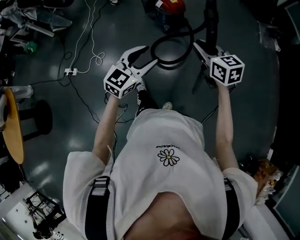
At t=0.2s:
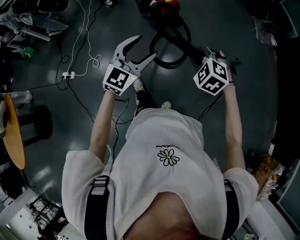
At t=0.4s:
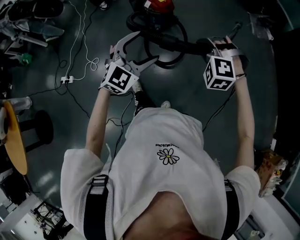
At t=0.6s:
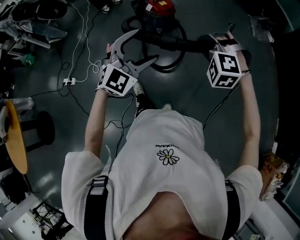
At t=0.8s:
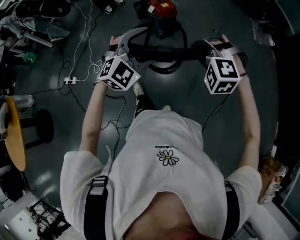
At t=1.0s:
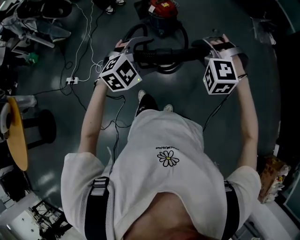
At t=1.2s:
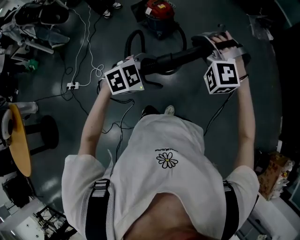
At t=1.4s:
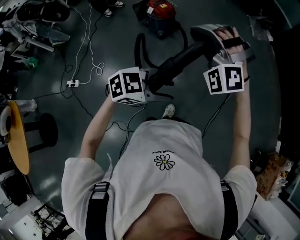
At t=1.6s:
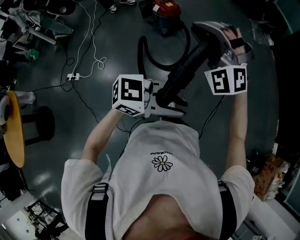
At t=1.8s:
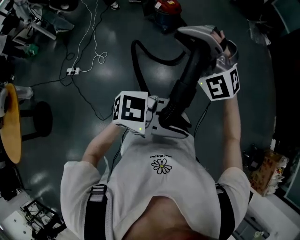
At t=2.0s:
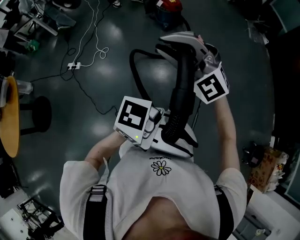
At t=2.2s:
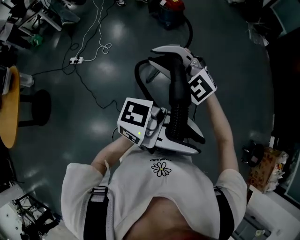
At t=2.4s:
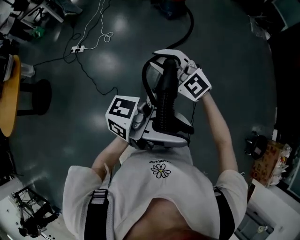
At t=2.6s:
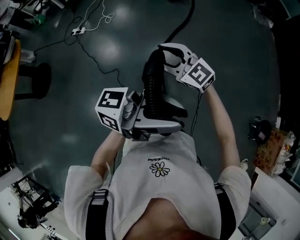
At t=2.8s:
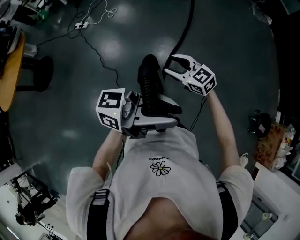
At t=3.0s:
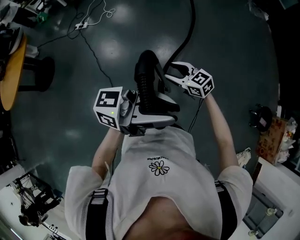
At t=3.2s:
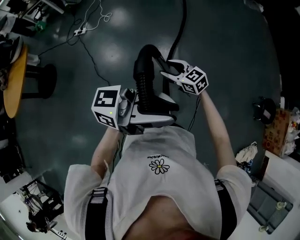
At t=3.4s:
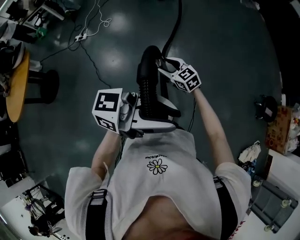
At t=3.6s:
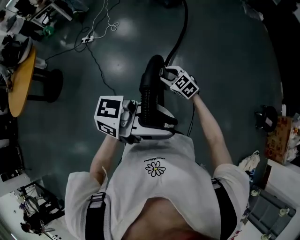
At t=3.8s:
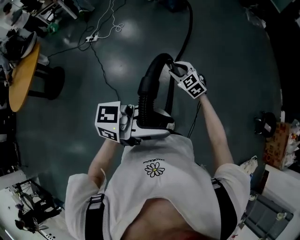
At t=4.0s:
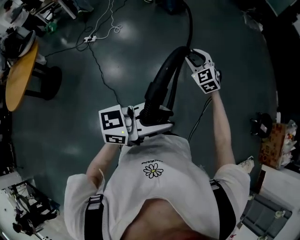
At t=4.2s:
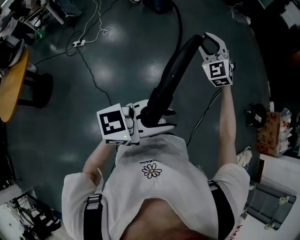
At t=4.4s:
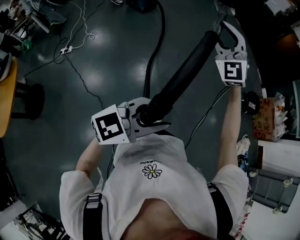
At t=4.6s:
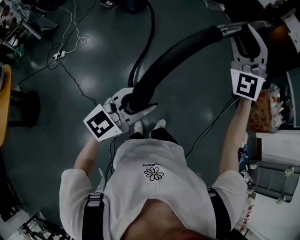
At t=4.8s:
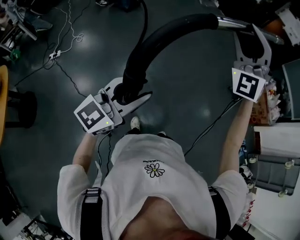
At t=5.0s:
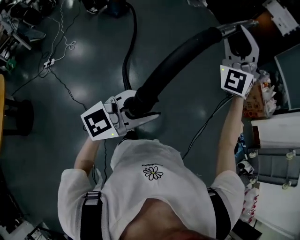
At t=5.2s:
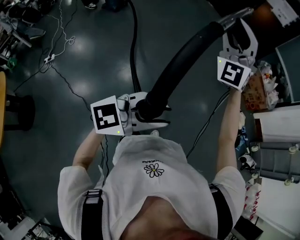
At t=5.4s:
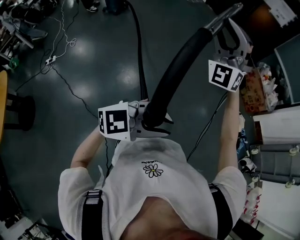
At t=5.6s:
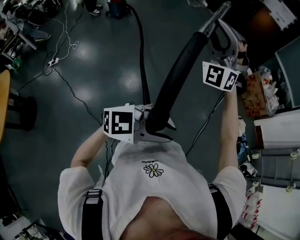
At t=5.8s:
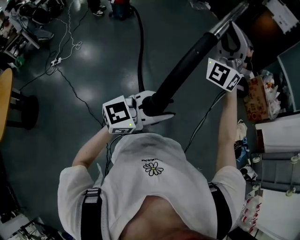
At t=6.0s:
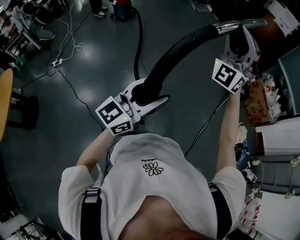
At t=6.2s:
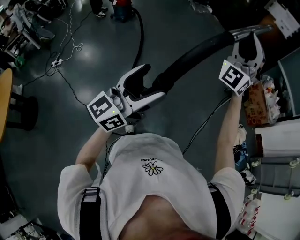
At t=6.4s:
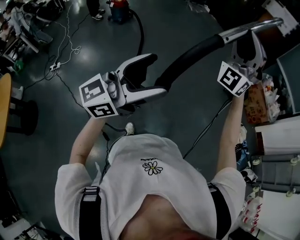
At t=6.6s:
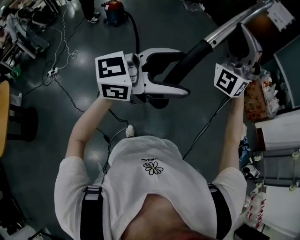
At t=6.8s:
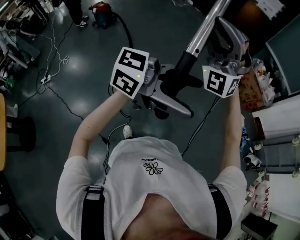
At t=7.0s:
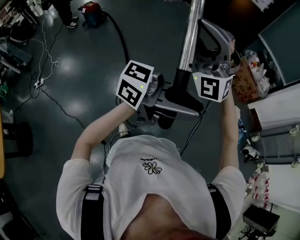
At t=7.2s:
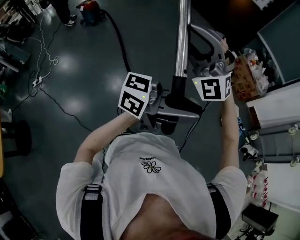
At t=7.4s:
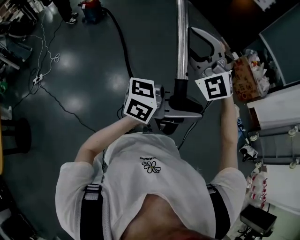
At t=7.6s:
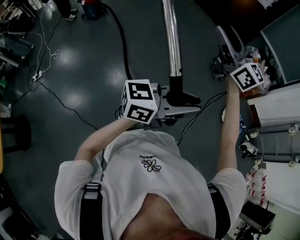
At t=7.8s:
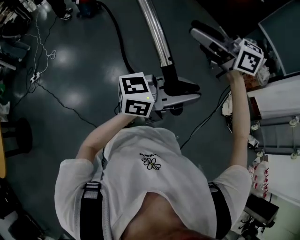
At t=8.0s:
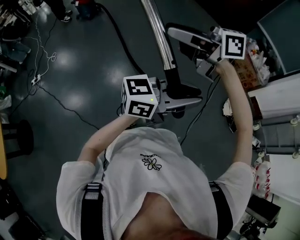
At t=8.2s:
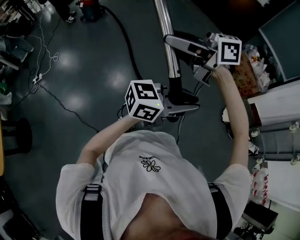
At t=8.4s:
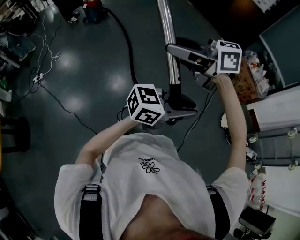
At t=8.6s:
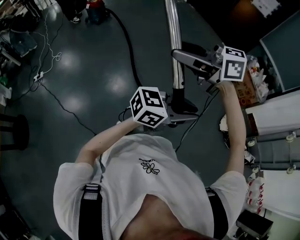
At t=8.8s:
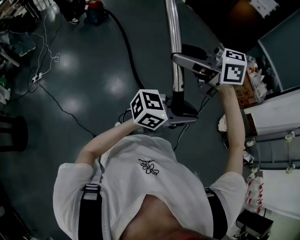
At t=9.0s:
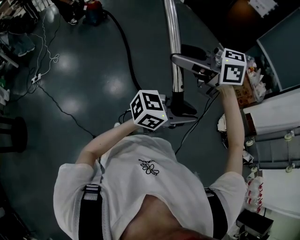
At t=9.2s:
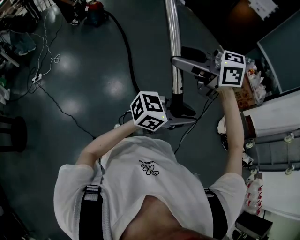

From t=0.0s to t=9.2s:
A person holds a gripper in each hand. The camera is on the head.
From t=0.0s to t=1.6s: The left gripper swings up and down, some 10 cm each way, with 2 reversals, changes its angle by some 60 degrees, and opens, then closes once more. The right gripper goes about 15 cm upward, and twists roughly 90 degrees counterclockwise, seen from behind.
From t=1.6s to t=3.0s: Both grippers are carried some 70 cm. The left gripper tilts its fingers roughly 30 degrees upward; the right gripper rotates around the line of its fingers by about 80 degrees, clockwise from behind, and opens up.
From t=3.0s to t=4.6s: The left gripper moves some 15 cm, and rotates roughly 50 degrees, while the right gripper heads upward, covering roughly 40 cm, and points its fingers about 30 degrees further upward.
From t=4.6s to t=6.2s: The left gripper rotates some 20 degrees, and opens up. Meanwhile the right gripper ends up some 25 cm from where it was, and changes its angle by some 30 degrees.
From t=6.2s to t=7.6s: The right gripper reaches some 10 cm downward, then returns, and rotates around the line of its fingers by approximately 70 degrees, clockwise from behind; the left gripper goes upward and returns, about 5 cm each way, rotates about 50 degrees, and closes up.
From t=7.6s to t=9.2s: The right gripper changes place by some 15 cm, and changes its angle by some 50 degrees; the left gripper heads downward, covering approximately 5 cm.

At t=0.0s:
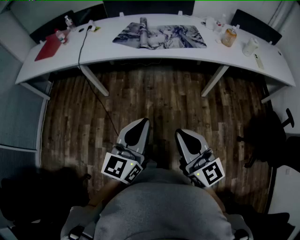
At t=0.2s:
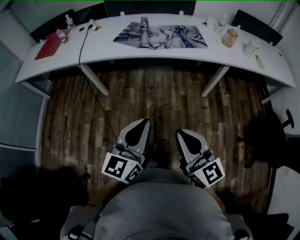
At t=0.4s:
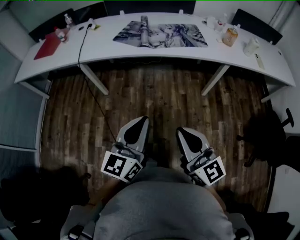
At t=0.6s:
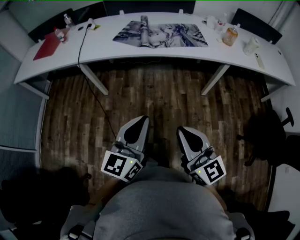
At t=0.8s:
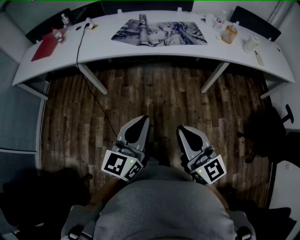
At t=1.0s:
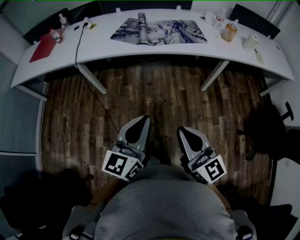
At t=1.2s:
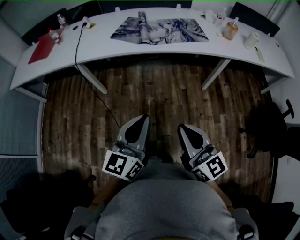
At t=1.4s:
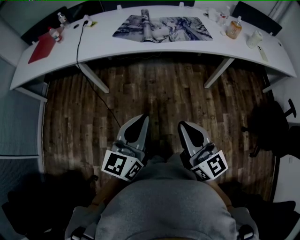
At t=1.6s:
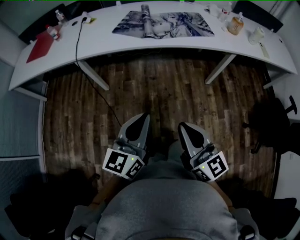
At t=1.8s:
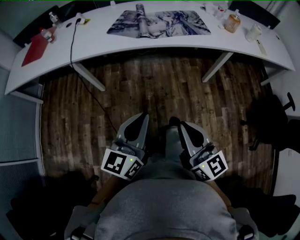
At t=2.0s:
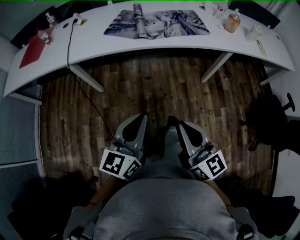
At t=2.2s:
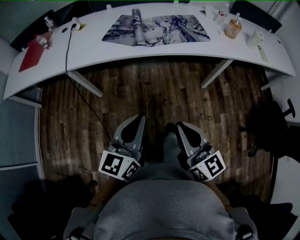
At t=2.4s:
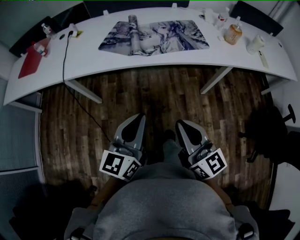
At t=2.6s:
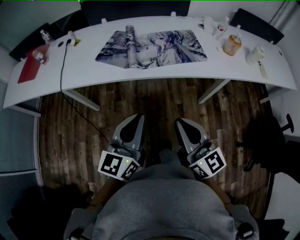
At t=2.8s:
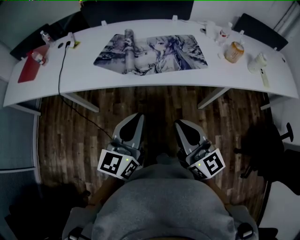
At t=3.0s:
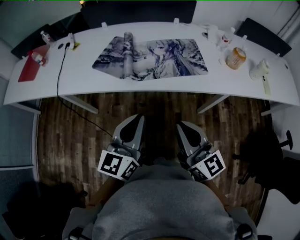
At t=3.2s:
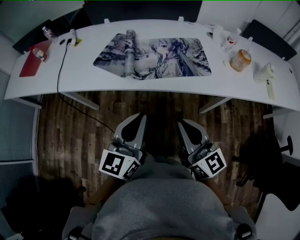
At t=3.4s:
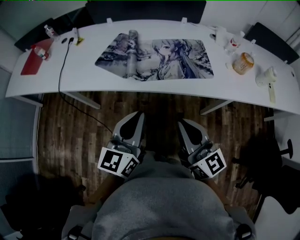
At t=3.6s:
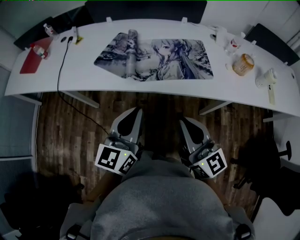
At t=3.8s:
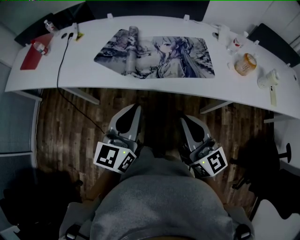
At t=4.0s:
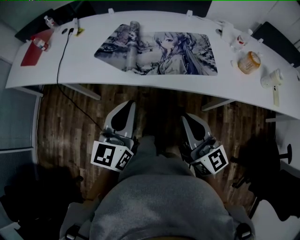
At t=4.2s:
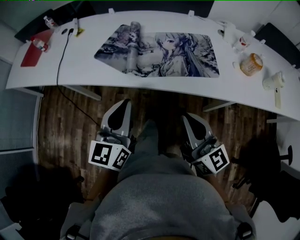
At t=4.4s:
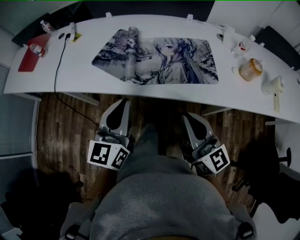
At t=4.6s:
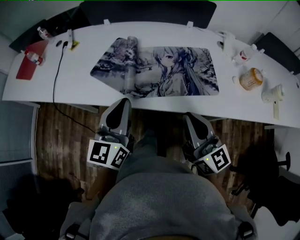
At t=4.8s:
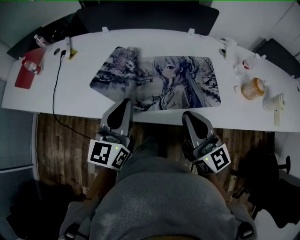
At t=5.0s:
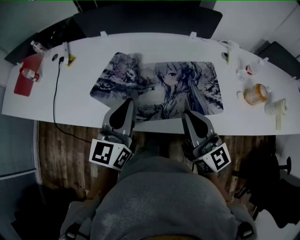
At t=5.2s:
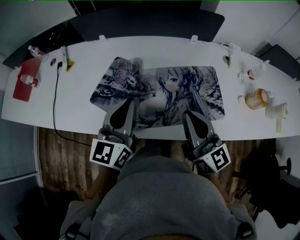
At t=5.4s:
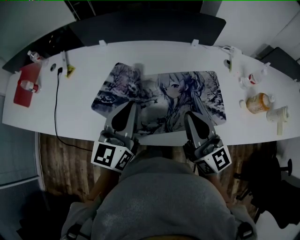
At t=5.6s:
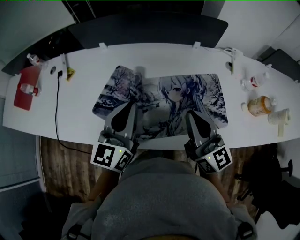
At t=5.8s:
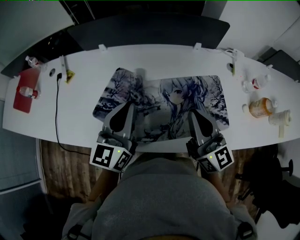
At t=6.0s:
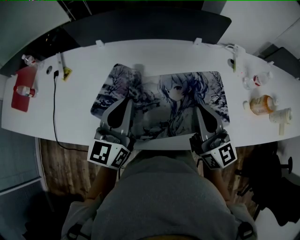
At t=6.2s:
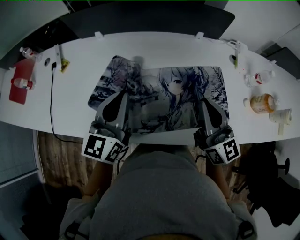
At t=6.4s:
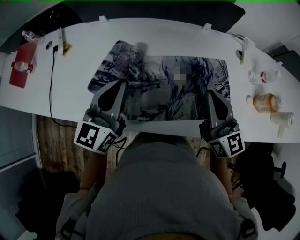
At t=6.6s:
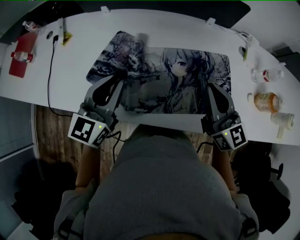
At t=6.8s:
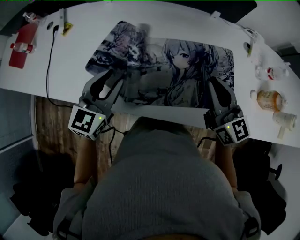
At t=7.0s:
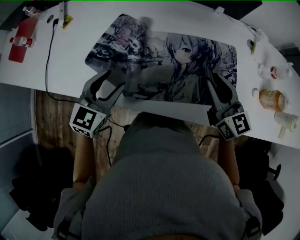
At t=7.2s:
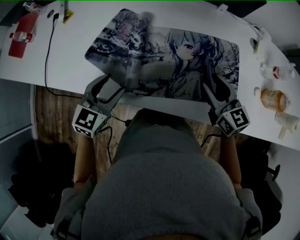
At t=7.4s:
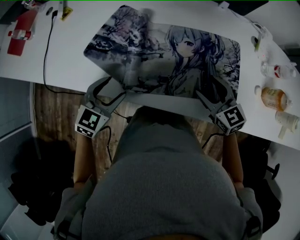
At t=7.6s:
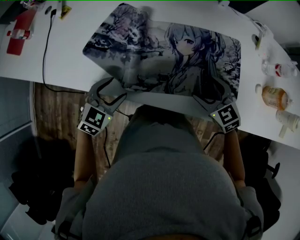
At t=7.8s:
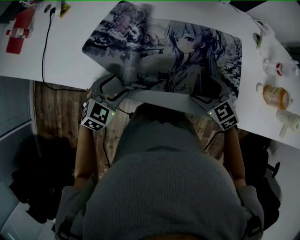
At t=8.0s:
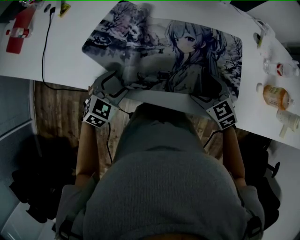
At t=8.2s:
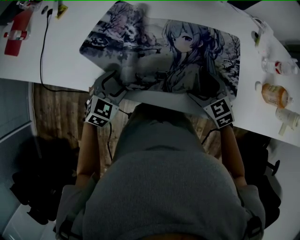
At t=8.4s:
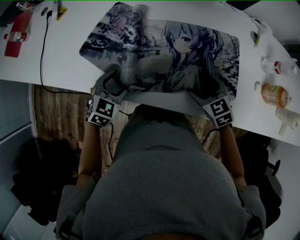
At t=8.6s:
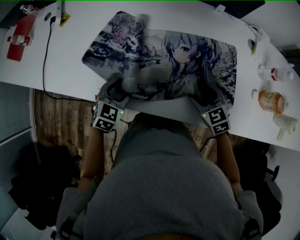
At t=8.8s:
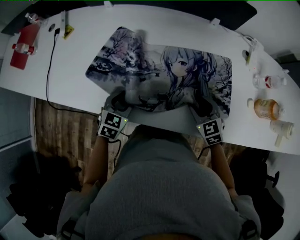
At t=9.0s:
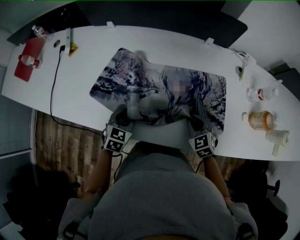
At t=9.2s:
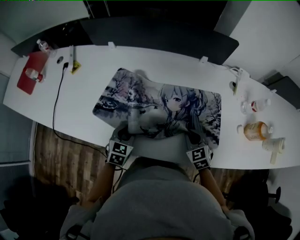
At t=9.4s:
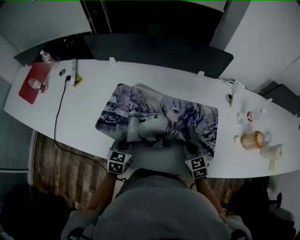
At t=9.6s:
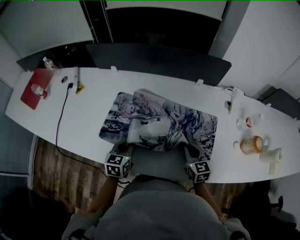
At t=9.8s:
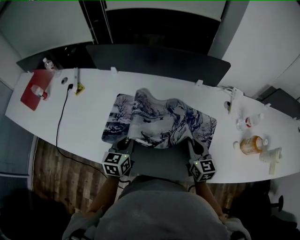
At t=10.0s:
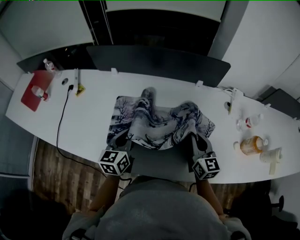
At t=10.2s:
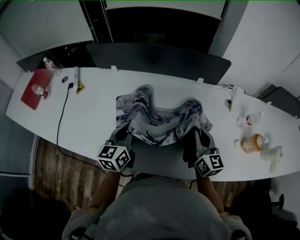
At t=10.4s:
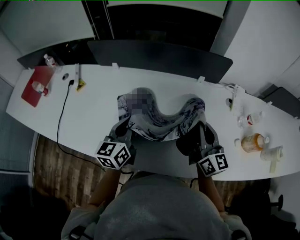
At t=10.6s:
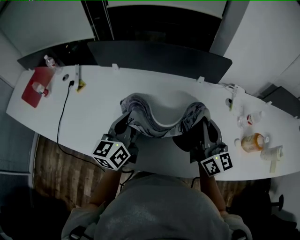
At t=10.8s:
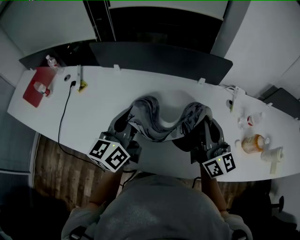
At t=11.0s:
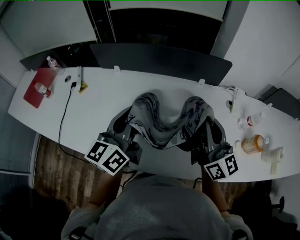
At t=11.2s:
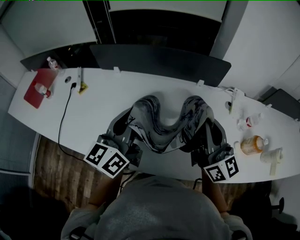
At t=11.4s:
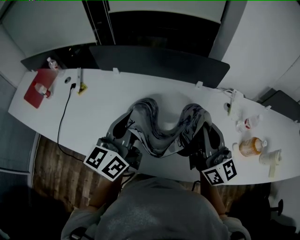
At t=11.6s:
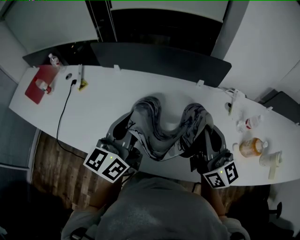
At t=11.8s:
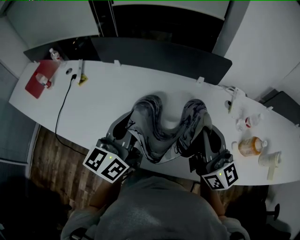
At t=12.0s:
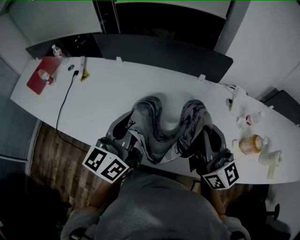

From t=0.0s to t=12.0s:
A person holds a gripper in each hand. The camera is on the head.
From t=0.0s to t=1.6s: Both grippers travel together to the left, roughly 5 cm.
From t=1.6s to t=3.0s: Both grippers move forward and to the right, roughly 30 cm.
From t=3.0s to t=4.4s: Both grippers move forward, roughly 10 cm.
From t=4.4s to t=6.0s: Both grippers move forward, some 25 cm.
From t=6.0s to t=7.6s: The left gripper moves downward and backward, approximately 25 cm, tips its fingers downward by some 40 degrees, and opens, while the right gripper goes approximately 20 cm downward, tips its fingers downward by approximately 50 degrees, and opens up.
From t=7.6s to t=9.0s: The right gripper closes its fingers. The left gripper travels forward by about 5 cm, and closes up.
From t=9.0s to t=10.4s: The right gripper moves upward, about 25 cm, and tips its fingers upward by about 50 degrees; the left gripper moves upward and forward, some 20 cm, angles its fingers upward, by approximately 30 degrees, and closes.
From t=10.4s to t=12.0s: The left gripper goes approximately 15 cm upward, backward and to the right. Meanwhile the right gripper travels upward and backward by approximately 15 cm.

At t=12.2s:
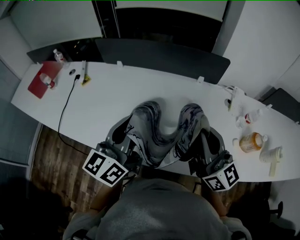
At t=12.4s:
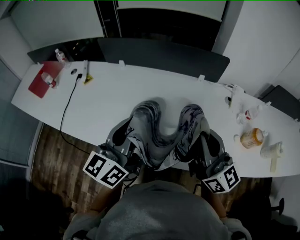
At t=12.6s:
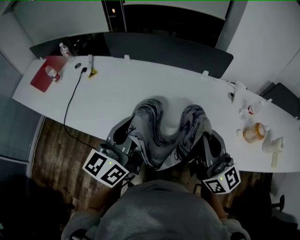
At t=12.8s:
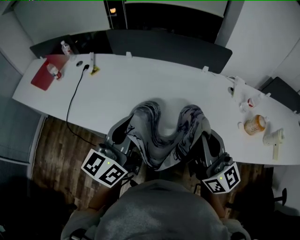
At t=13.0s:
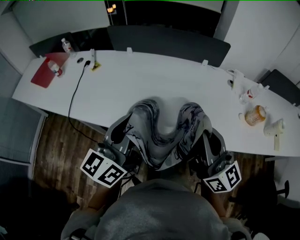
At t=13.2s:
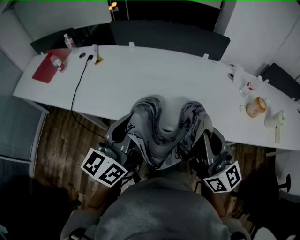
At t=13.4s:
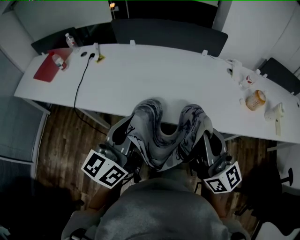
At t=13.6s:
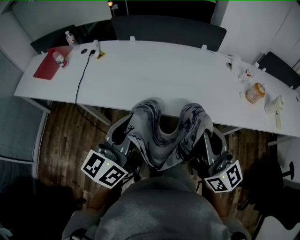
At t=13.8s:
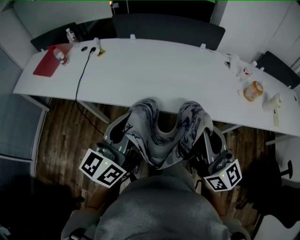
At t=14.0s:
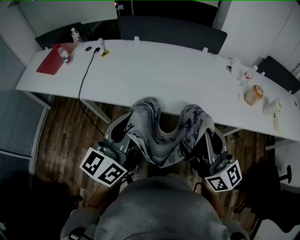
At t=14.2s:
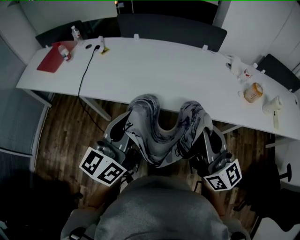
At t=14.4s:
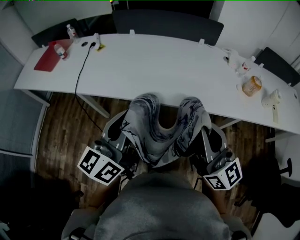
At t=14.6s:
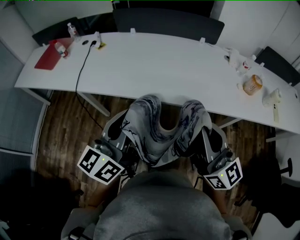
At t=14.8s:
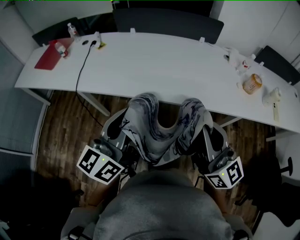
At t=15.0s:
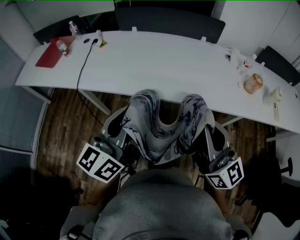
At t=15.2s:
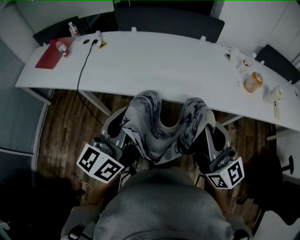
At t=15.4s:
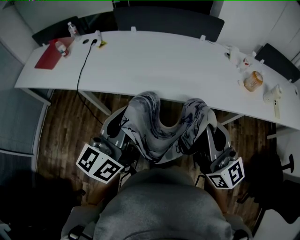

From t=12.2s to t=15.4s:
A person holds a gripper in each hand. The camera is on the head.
From t=12.2s to t=13.8s: Both grippers move backward and to the left, roughly 30 cm.
From t=13.8s to t=15.4s: The grippers move only a little.
